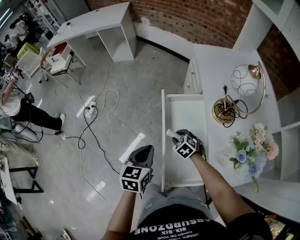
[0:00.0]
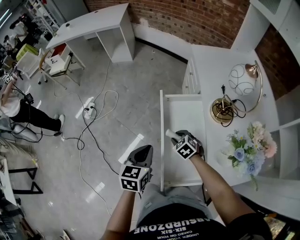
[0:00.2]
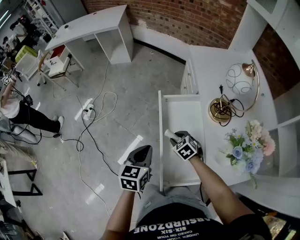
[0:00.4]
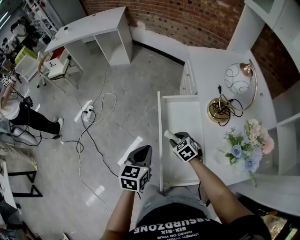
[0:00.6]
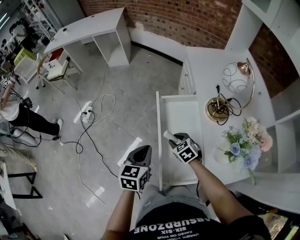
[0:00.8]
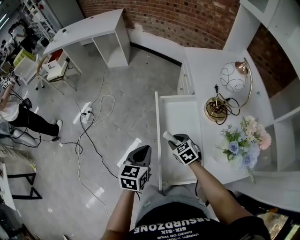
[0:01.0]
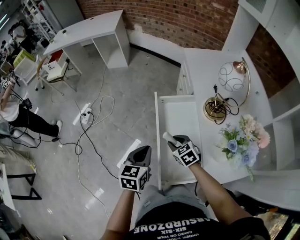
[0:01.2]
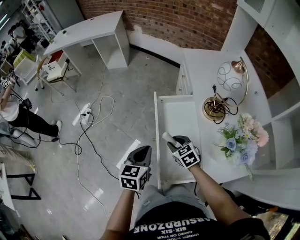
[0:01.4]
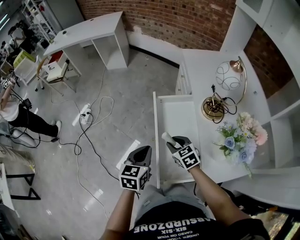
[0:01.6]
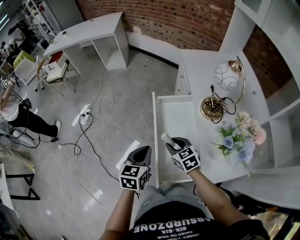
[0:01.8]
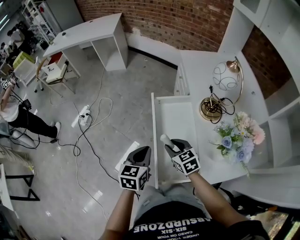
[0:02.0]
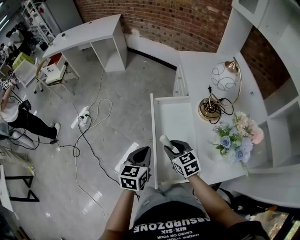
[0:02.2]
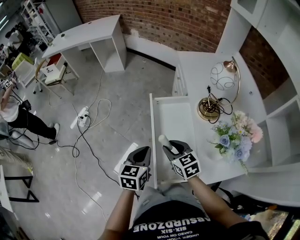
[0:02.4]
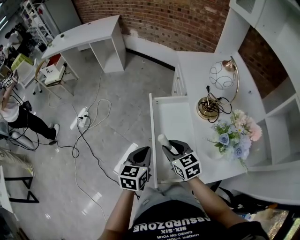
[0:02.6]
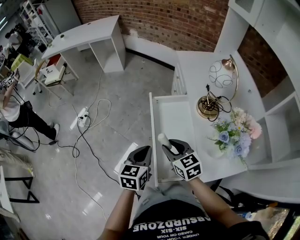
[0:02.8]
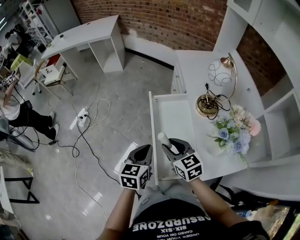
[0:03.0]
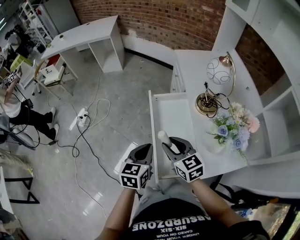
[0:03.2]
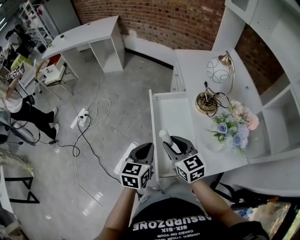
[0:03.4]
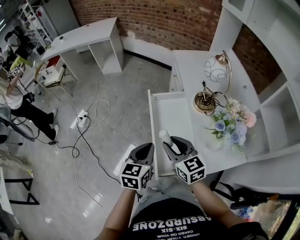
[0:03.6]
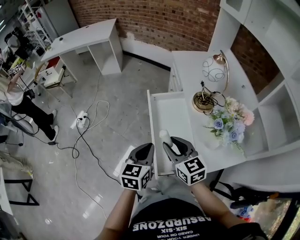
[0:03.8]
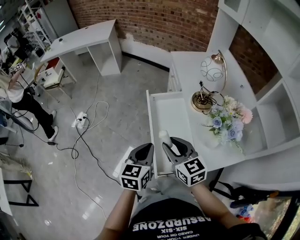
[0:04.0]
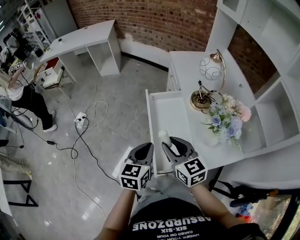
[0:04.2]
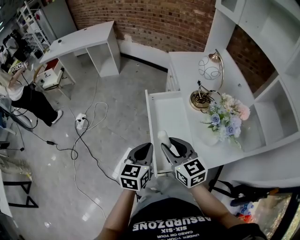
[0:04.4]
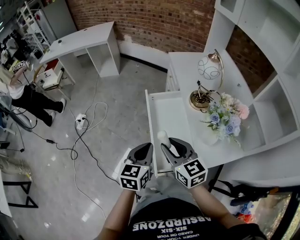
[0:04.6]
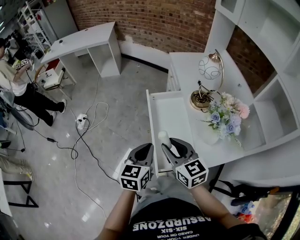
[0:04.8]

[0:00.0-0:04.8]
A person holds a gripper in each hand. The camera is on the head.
0:00.0 to 0:01.6: The right gripper moves upward and backward, about 10 cm, and rotates some 20 degrees.
0:01.6 to 0:03.2: The right gripper goes approximately 15 cm upward and backward.
0:03.2 to 0:04.8: The right gripper goes approximately 10 cm backward and upward, while the left gripper travels backward by about 5 cm.

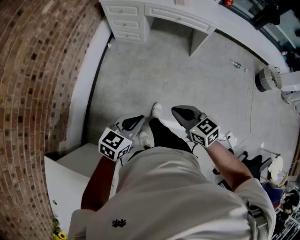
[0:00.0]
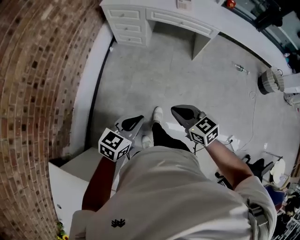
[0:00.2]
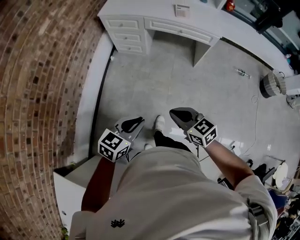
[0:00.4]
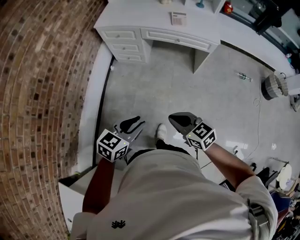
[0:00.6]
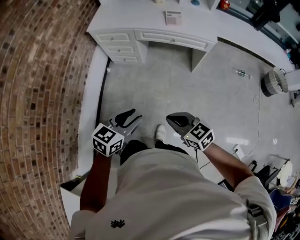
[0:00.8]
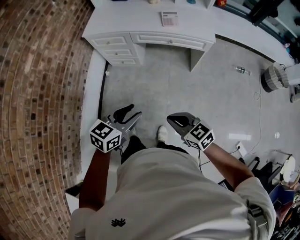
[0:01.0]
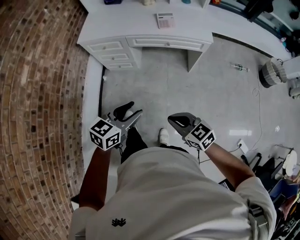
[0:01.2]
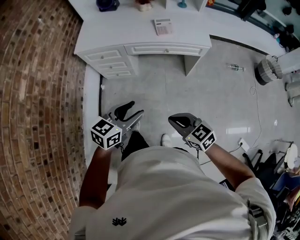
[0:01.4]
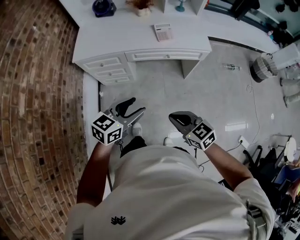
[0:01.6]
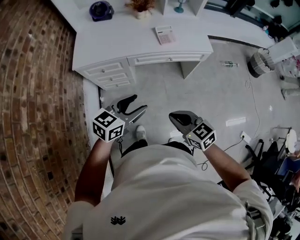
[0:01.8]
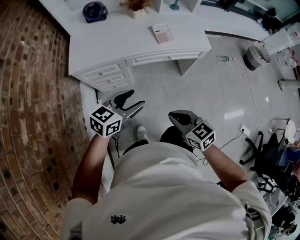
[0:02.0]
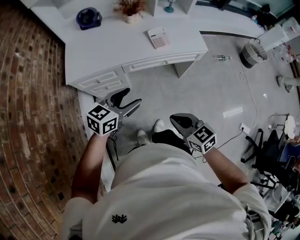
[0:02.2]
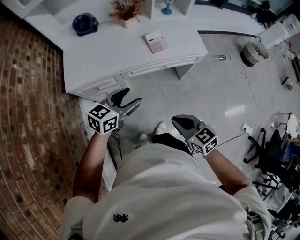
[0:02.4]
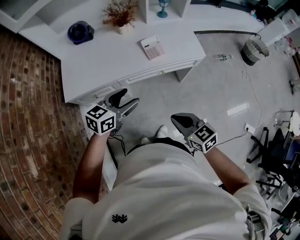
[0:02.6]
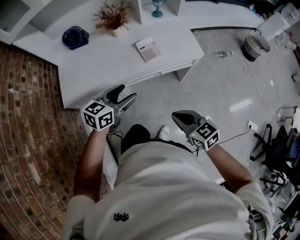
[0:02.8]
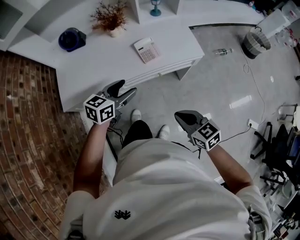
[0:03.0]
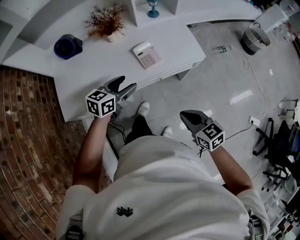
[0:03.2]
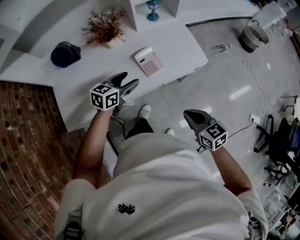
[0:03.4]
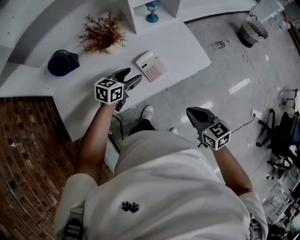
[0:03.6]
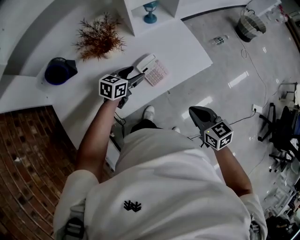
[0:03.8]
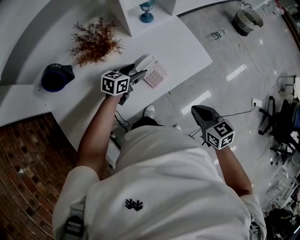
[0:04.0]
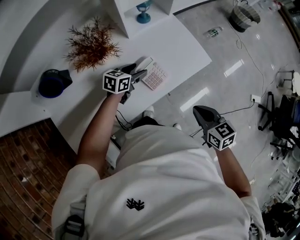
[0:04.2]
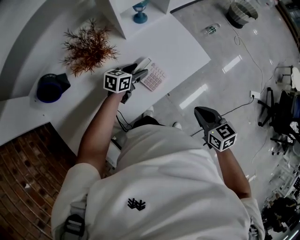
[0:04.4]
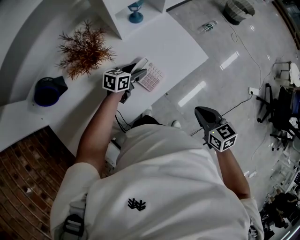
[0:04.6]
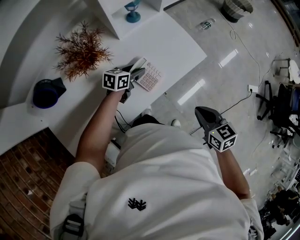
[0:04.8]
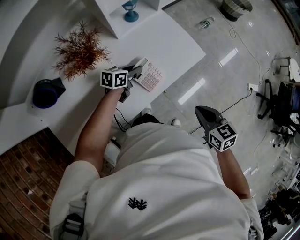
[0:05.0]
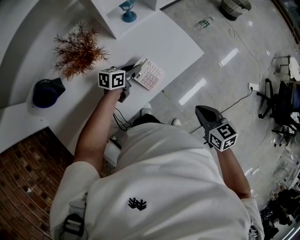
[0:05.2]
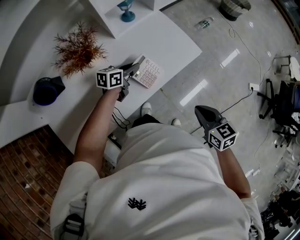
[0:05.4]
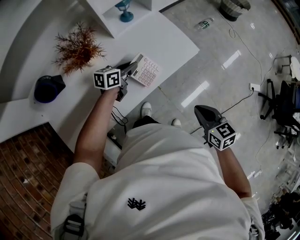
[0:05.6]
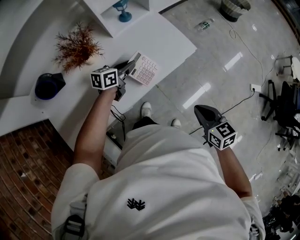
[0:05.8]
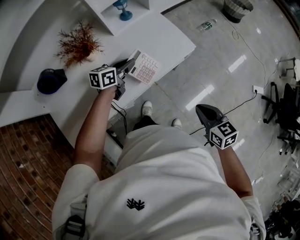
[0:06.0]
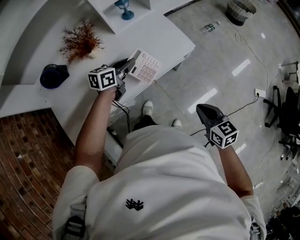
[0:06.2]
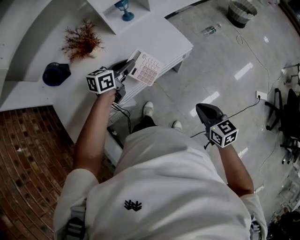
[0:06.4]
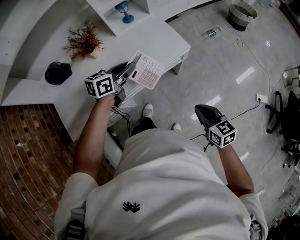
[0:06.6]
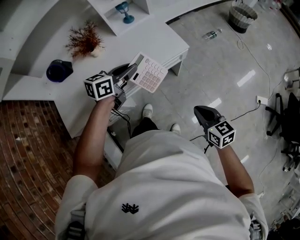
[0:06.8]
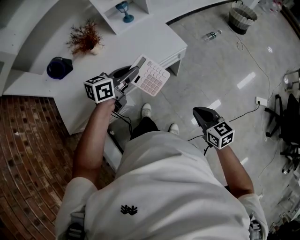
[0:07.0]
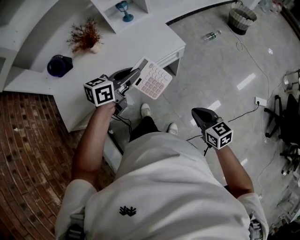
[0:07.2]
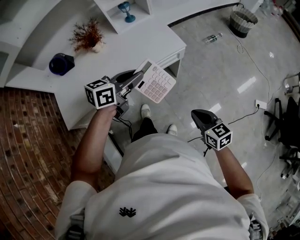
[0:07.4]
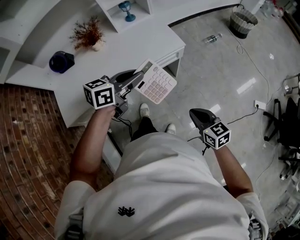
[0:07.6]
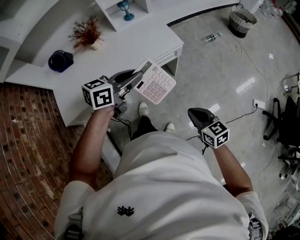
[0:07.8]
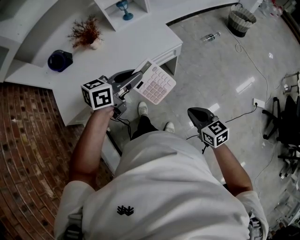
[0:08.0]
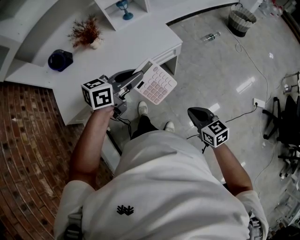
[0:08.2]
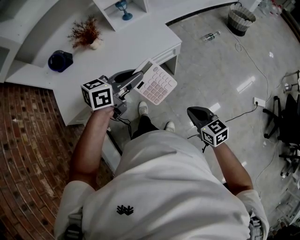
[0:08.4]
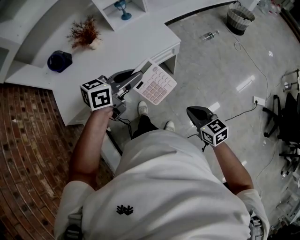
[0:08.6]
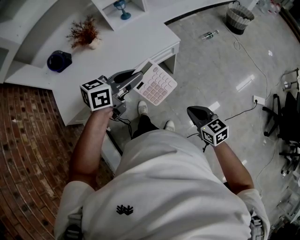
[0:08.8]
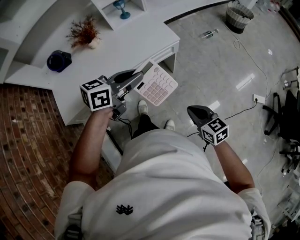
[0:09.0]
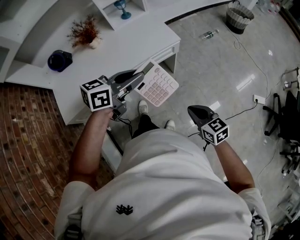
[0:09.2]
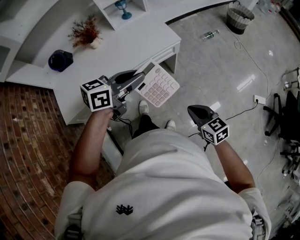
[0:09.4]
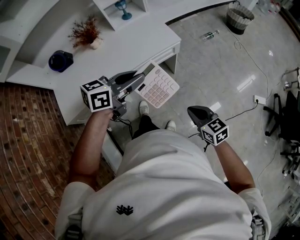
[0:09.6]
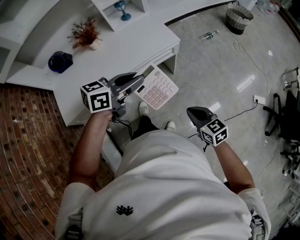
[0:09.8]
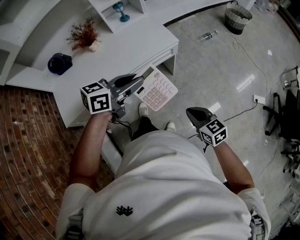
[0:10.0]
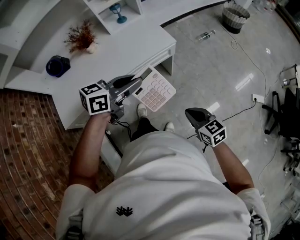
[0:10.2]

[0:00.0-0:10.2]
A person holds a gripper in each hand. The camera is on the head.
0:00.0 to 0:01.4: Both grippers travel together forward, approximately 35 cm. The left gripper opens its fingers.
0:01.4 to 0:03.0: The right gripper goes approximately 25 cm forward, and turns by about 30 degrees; the left gripper shifts roughly 35 cm forward.
0:03.0 to 0:04.4: The right gripper ends up some 20 cm from where it was, and turns by some 30 degrees. The left gripper moves roughly 35 cm, and rotates some 20 degrees.
0:04.4 to 0:05.8: The right gripper is displaced to the right by approximately 10 cm; the left gripper heads upward, covering approximately 5 cm, and closes.
0:05.8 to 0:07.2: The right gripper shifts about 15 cm to the right and backward. Meanwhile the left gripper shifts roughly 30 cm backward, upward and to the right.
0:07.2 to 0:08.8: The left gripper moves backward, about 5 cm.
0:08.8 to 0:10.2: The grippers stay close to where they were, moving slightly.

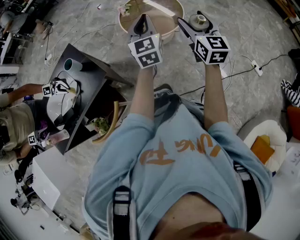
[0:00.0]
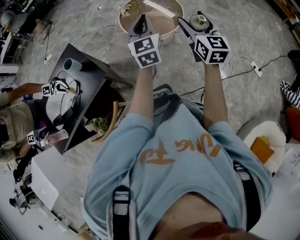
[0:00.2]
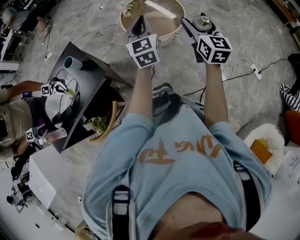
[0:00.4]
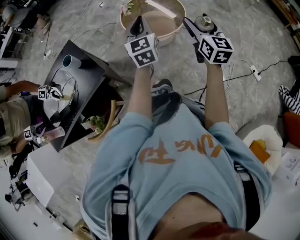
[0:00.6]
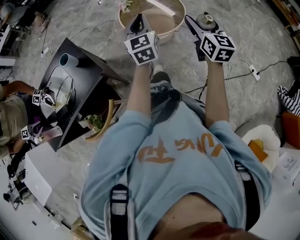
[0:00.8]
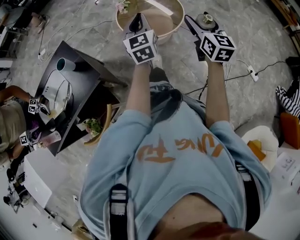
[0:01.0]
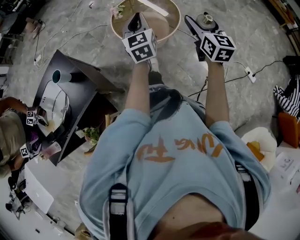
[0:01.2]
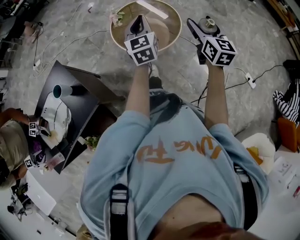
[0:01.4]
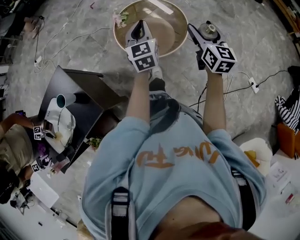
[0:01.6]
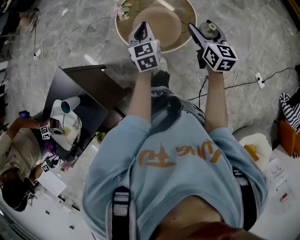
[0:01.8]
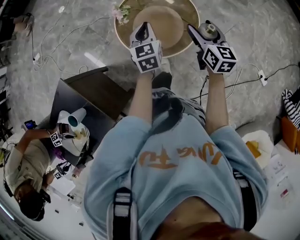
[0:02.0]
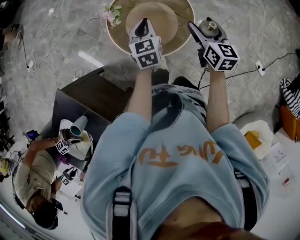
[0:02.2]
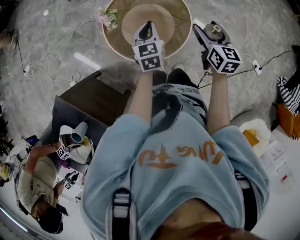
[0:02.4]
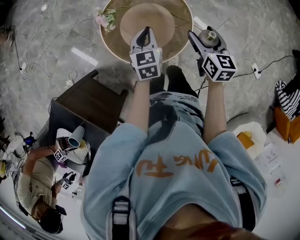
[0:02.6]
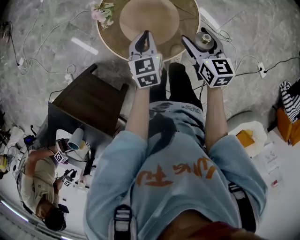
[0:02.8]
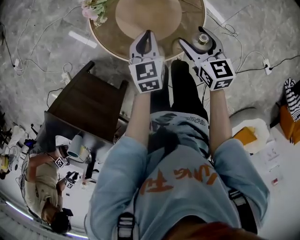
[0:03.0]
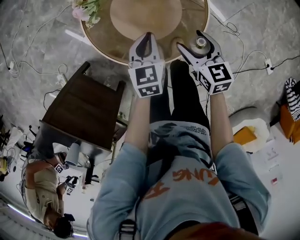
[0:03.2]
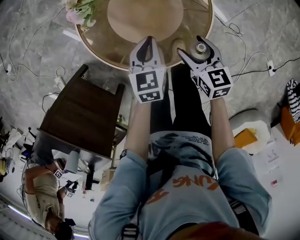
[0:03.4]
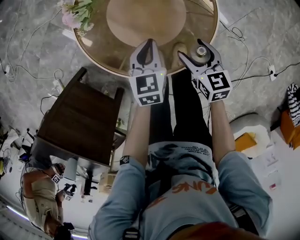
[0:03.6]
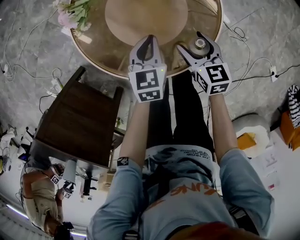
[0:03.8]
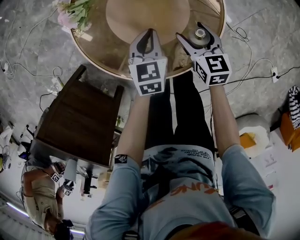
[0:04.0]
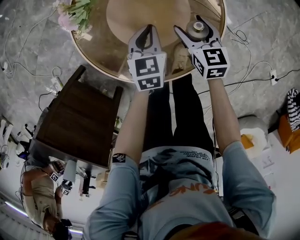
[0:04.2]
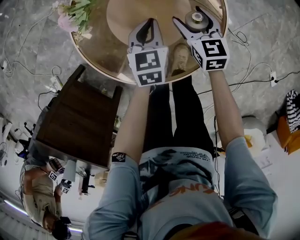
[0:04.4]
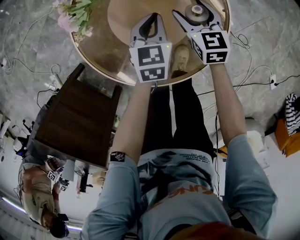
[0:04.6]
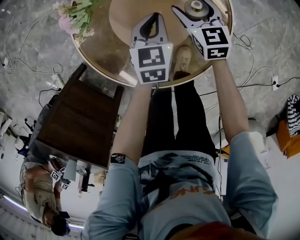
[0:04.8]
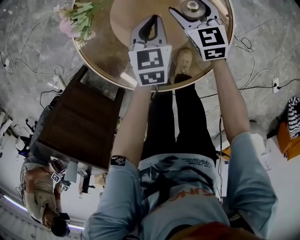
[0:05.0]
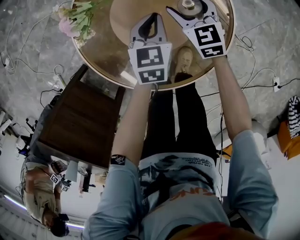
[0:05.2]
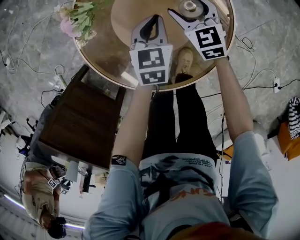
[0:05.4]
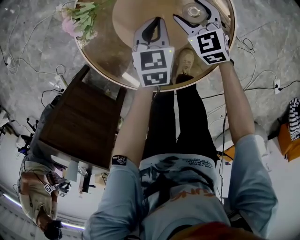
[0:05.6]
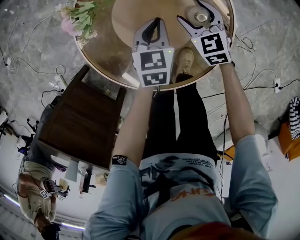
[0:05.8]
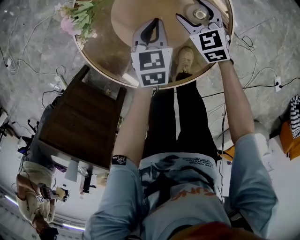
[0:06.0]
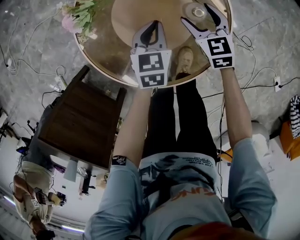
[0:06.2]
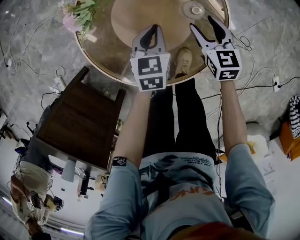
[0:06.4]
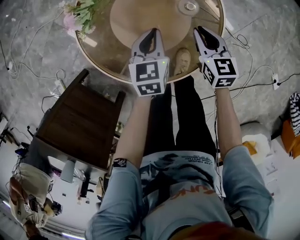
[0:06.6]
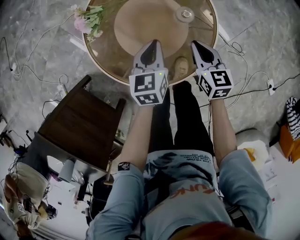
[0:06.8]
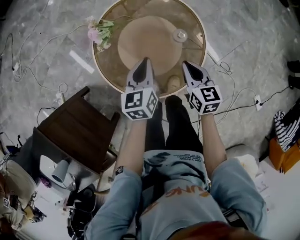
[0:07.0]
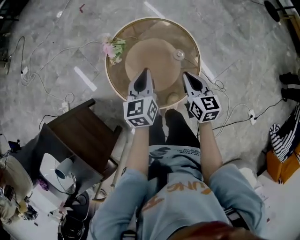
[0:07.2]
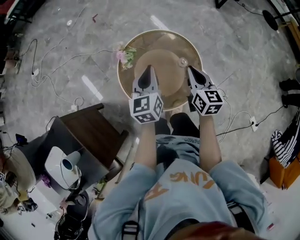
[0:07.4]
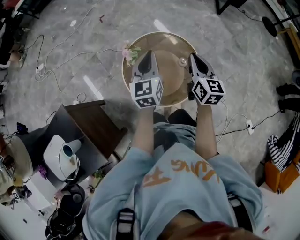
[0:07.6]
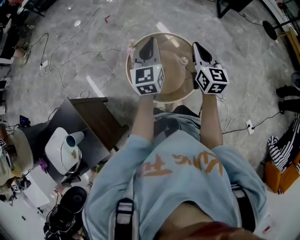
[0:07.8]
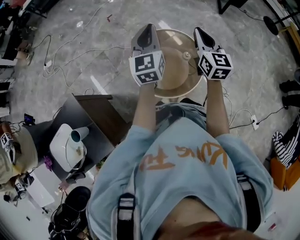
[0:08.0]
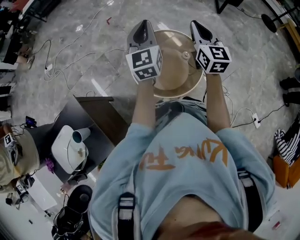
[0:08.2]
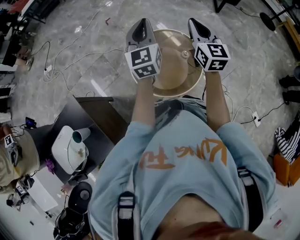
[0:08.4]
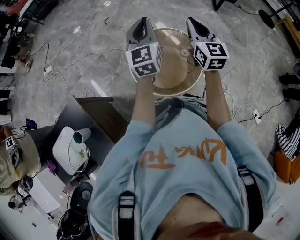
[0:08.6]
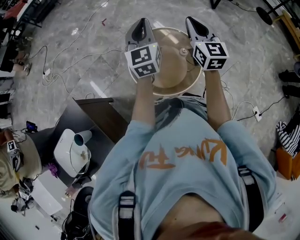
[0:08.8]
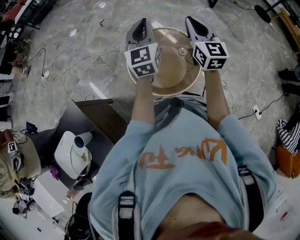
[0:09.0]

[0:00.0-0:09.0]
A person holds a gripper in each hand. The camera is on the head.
0:00.0 to 0:01.6: The two grippers go approximately 25 cm forward.
0:01.6 to 0:03.0: The two grippers go approximately 35 cm downward and forward. The right gripper changes its angle by about 30 degrees, while the left gripper rotates some 30 degrees.
0:03.0 to 0:04.4: Both grippers move downward and forward, roughly 20 cm.
0:06.0 to 0:07.6: Both grippers travel together upward, roughly 50 cm. The left gripper points its fingers about 40 degrees further upward; the right gripper turns by approximately 40 degrees, and closes up.
0:07.6 to 0:09.0: Both grippers travel together upward, roughly 15 cm.
